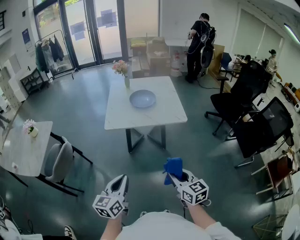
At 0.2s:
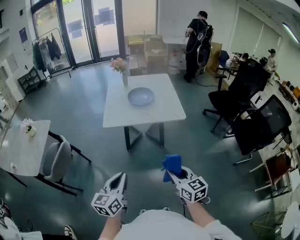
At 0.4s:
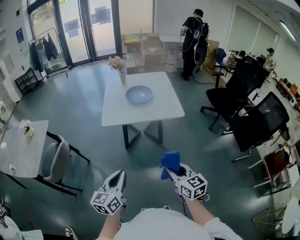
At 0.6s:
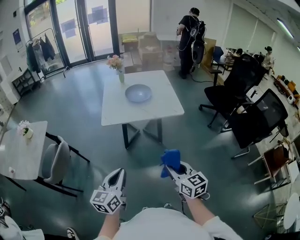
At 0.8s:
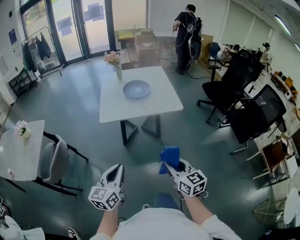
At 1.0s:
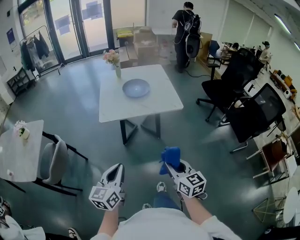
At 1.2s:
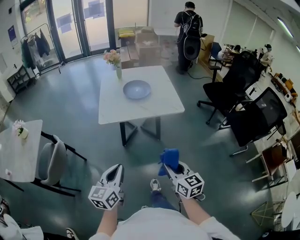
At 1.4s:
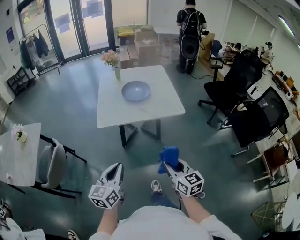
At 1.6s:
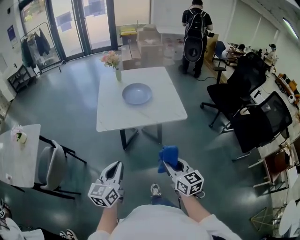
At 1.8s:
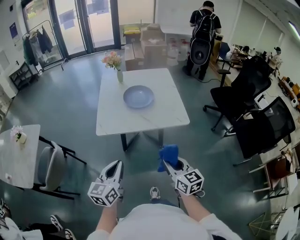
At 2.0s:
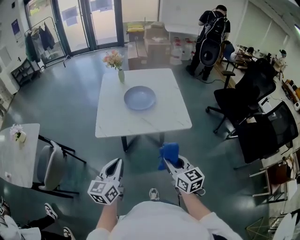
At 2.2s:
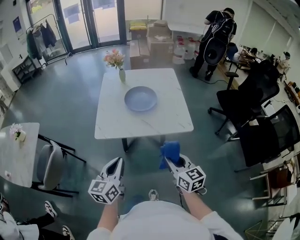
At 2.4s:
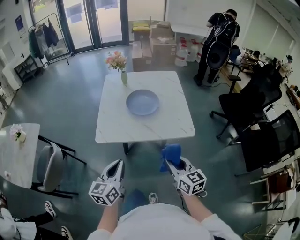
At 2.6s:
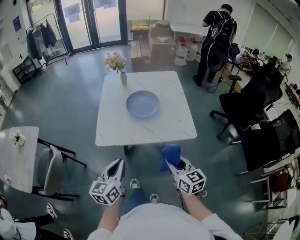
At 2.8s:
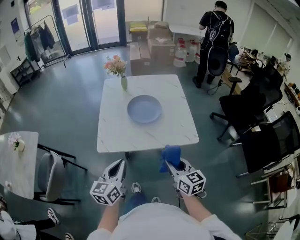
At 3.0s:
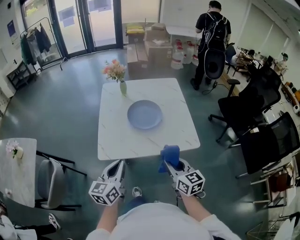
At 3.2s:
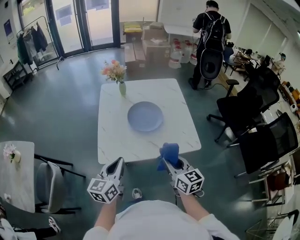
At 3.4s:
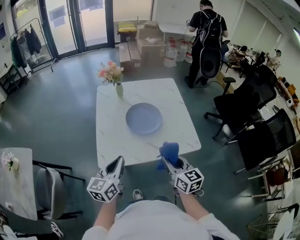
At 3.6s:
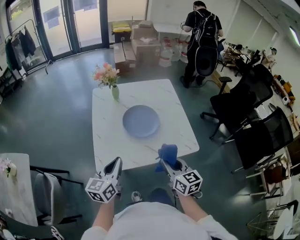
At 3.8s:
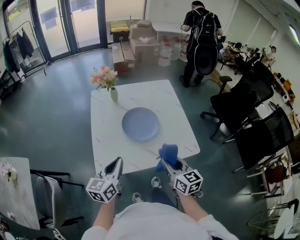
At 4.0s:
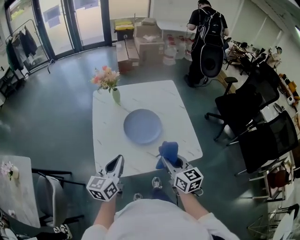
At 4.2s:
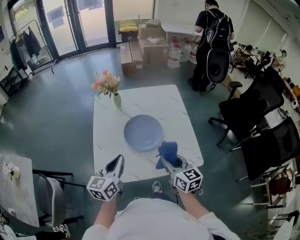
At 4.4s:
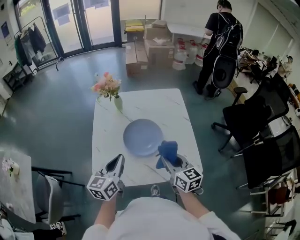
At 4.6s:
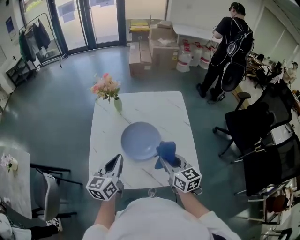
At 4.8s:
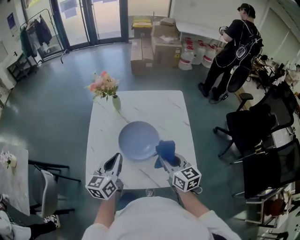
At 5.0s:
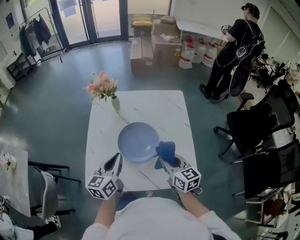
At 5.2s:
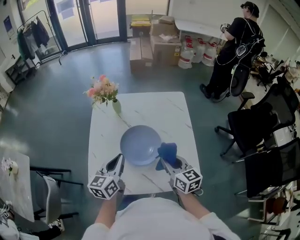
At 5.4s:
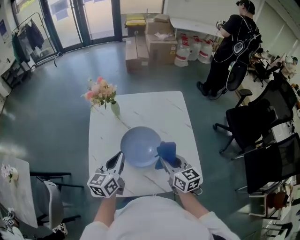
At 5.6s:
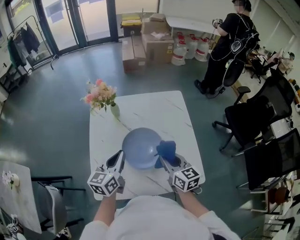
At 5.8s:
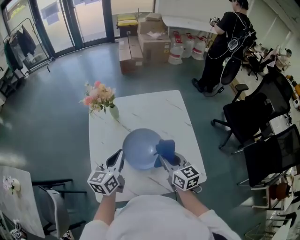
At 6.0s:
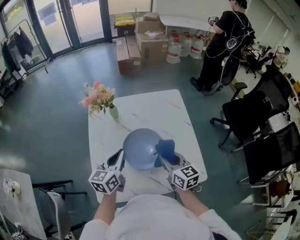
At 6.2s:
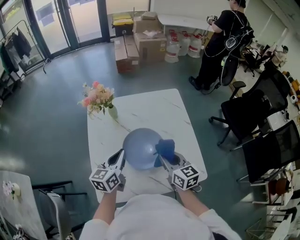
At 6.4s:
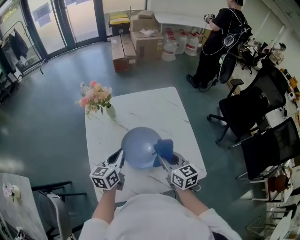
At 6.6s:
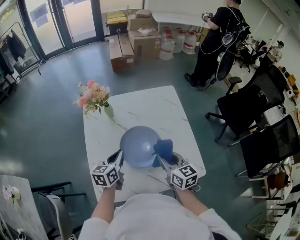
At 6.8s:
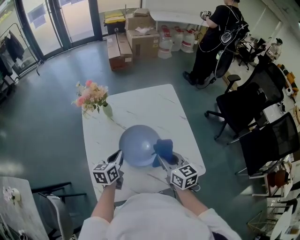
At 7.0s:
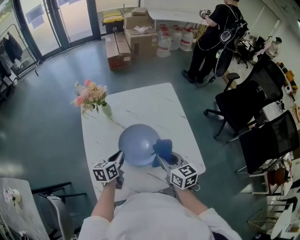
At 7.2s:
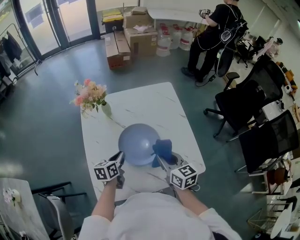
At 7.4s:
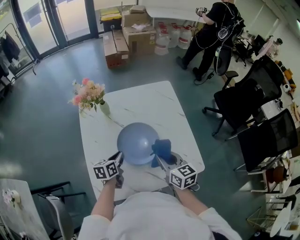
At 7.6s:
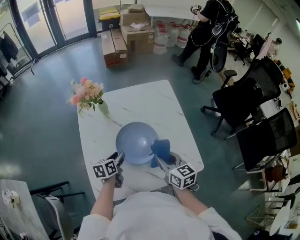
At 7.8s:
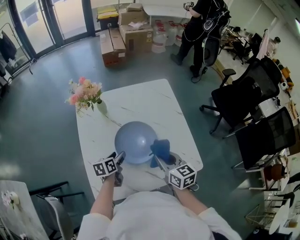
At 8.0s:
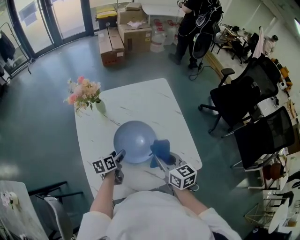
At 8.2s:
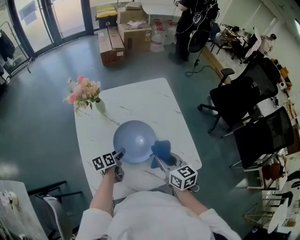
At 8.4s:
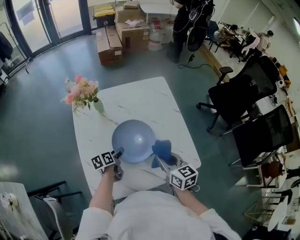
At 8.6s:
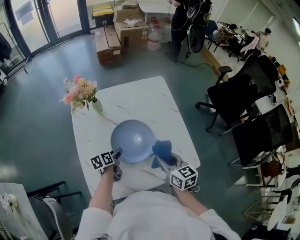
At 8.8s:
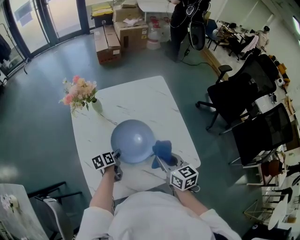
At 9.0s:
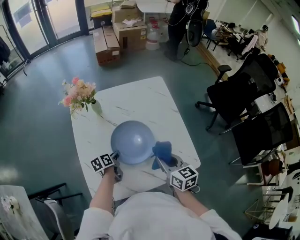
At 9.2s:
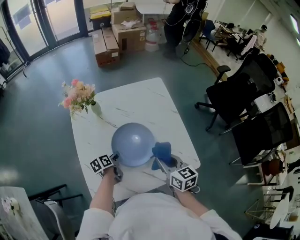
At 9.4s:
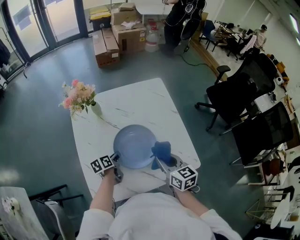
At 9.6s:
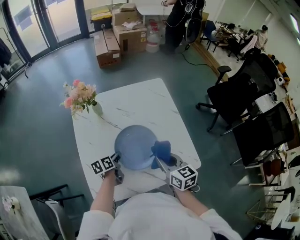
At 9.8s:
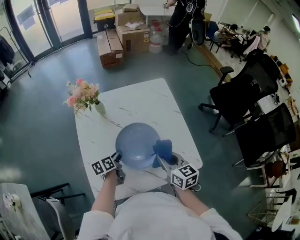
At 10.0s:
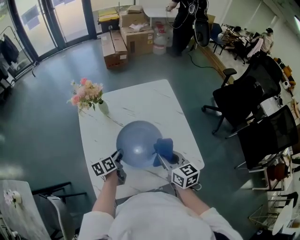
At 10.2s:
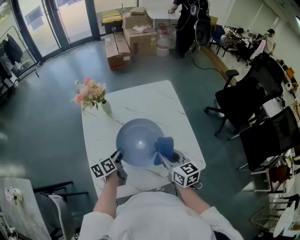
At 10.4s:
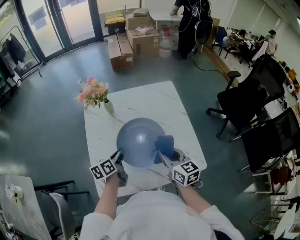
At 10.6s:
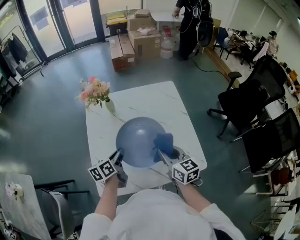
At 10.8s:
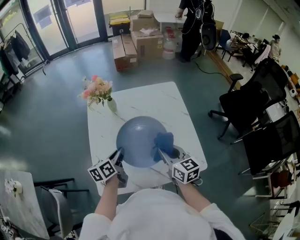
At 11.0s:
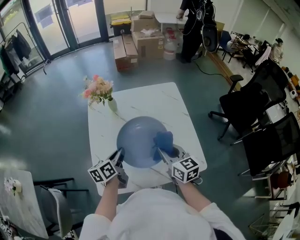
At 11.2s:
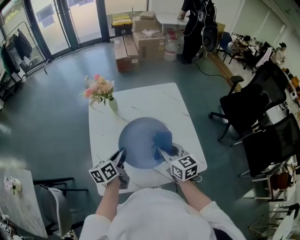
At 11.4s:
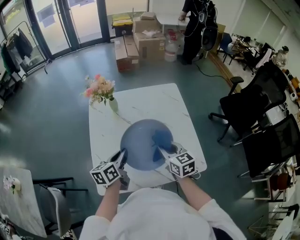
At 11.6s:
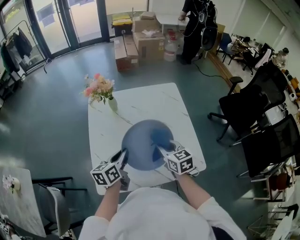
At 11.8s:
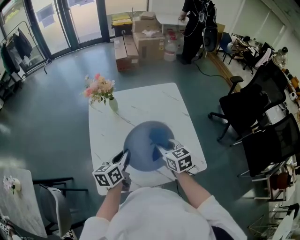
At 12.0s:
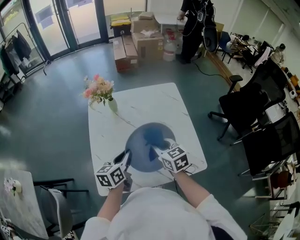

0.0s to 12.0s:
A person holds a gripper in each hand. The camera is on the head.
0.0s to 1.6s: Both grippers travel together forward, some 15 cm.
1.6s to 3.0s: Both grippers move forward, some 25 cm.
3.0s to 4.4s: Both grippers move forward, roughly 20 cm.
4.4s to 6.0s: The grippers both shift forward by some 10 cm.
6.0s to 7.6s: The left gripper heads downward, covering roughly 15 cm, turns by roughly 30 degrees, and opens up.
7.6s to 9.0s: The left gripper goes about 5 cm downward, and opens, then closes once more.
9.0s to 10.4s: The left gripper travels upward by approximately 15 cm.
10.4s to 12.0s: The left gripper heads upward, covering some 5 cm; the right gripper moves some 5 cm.

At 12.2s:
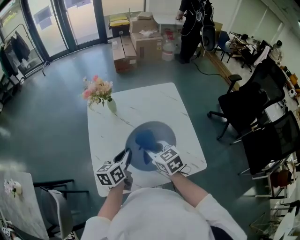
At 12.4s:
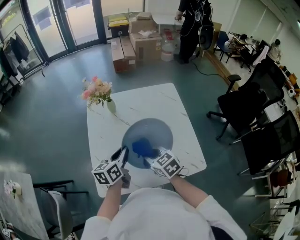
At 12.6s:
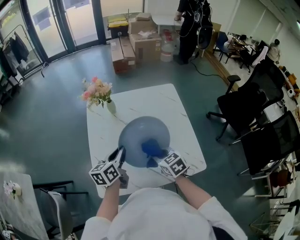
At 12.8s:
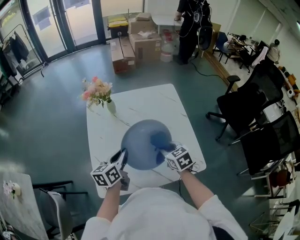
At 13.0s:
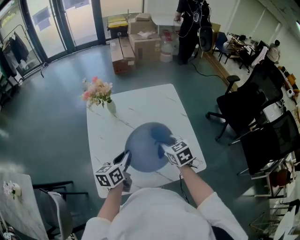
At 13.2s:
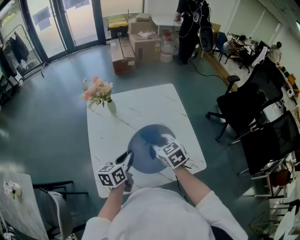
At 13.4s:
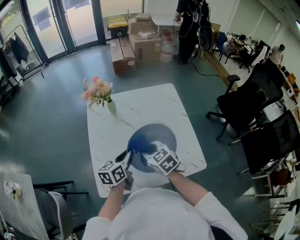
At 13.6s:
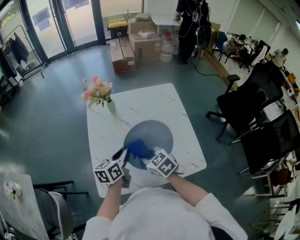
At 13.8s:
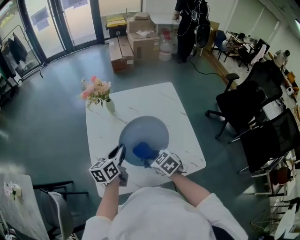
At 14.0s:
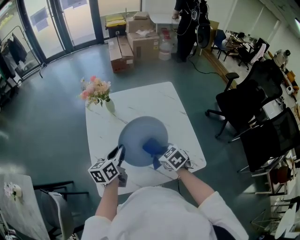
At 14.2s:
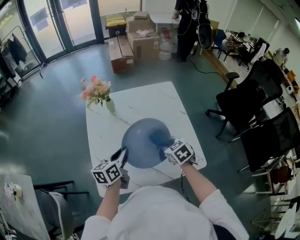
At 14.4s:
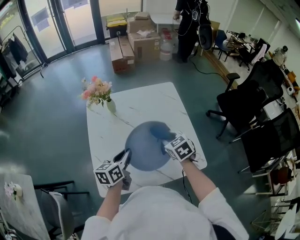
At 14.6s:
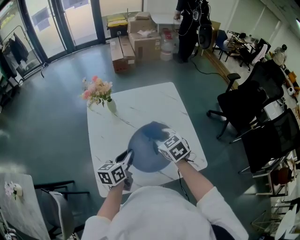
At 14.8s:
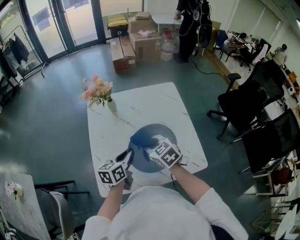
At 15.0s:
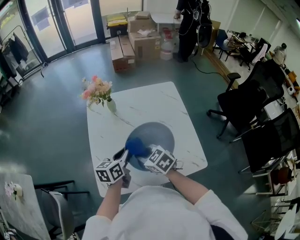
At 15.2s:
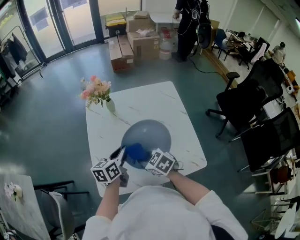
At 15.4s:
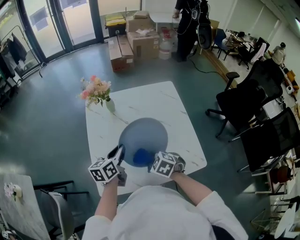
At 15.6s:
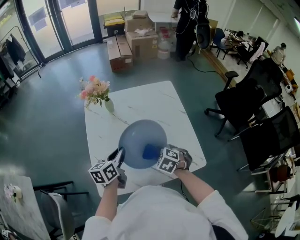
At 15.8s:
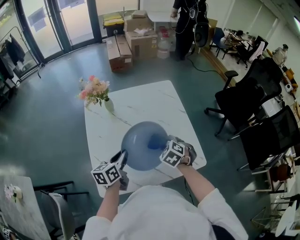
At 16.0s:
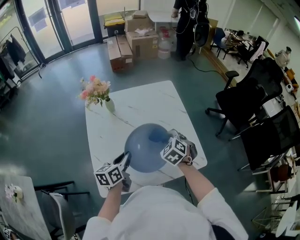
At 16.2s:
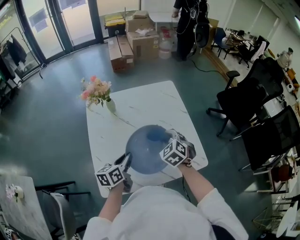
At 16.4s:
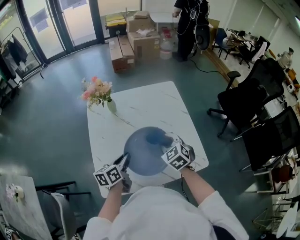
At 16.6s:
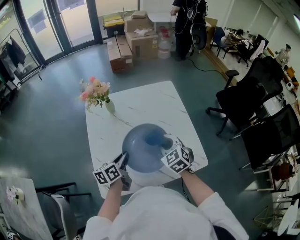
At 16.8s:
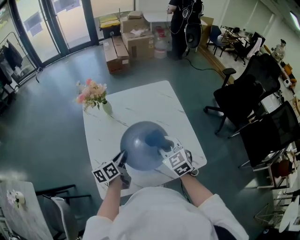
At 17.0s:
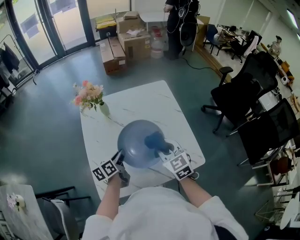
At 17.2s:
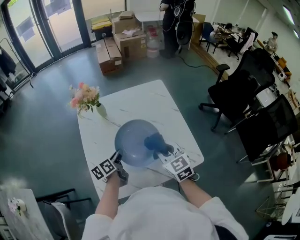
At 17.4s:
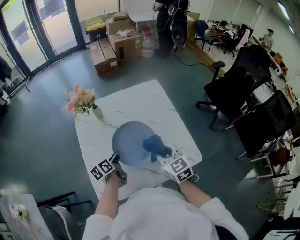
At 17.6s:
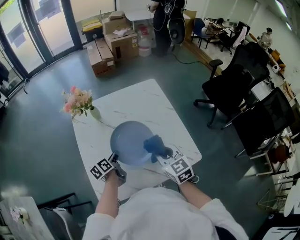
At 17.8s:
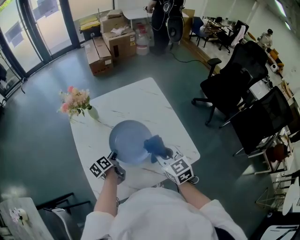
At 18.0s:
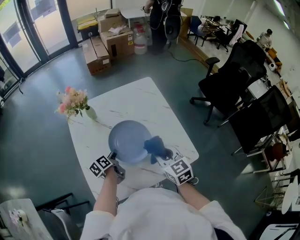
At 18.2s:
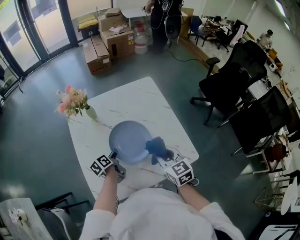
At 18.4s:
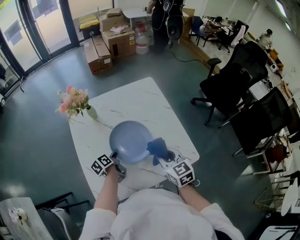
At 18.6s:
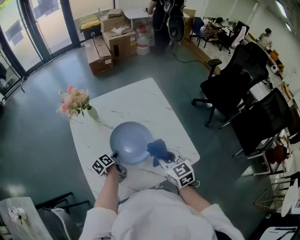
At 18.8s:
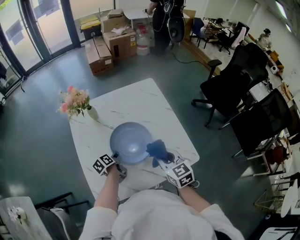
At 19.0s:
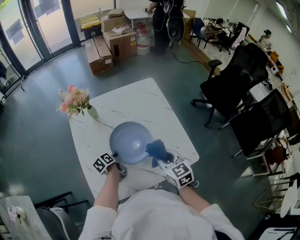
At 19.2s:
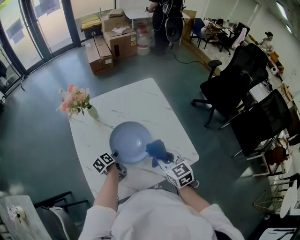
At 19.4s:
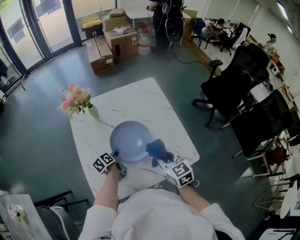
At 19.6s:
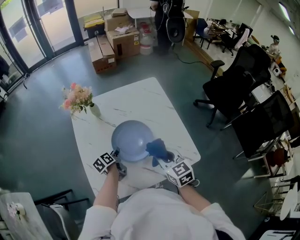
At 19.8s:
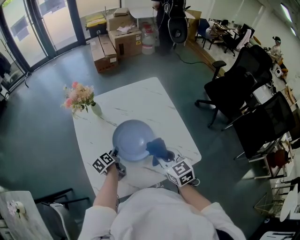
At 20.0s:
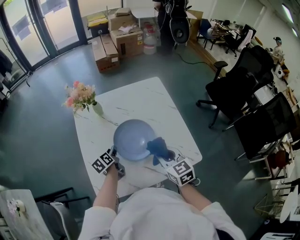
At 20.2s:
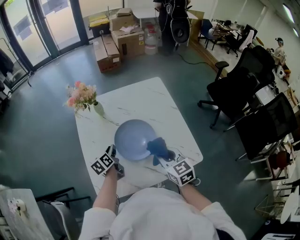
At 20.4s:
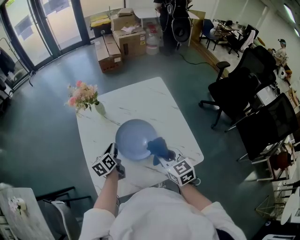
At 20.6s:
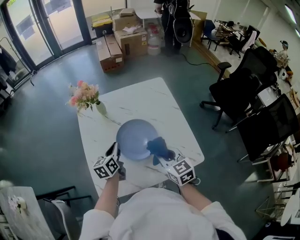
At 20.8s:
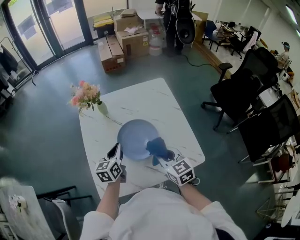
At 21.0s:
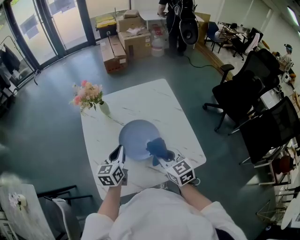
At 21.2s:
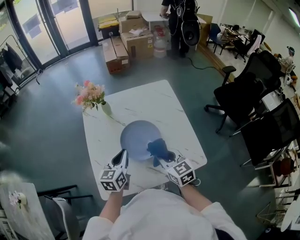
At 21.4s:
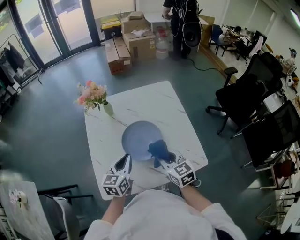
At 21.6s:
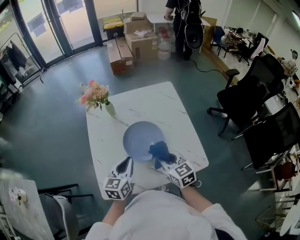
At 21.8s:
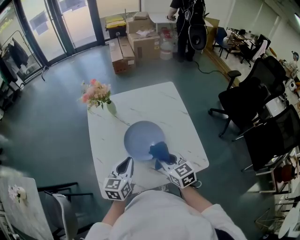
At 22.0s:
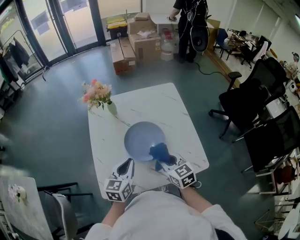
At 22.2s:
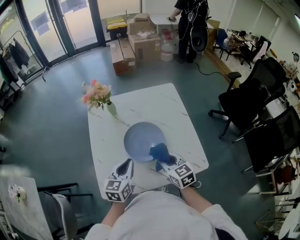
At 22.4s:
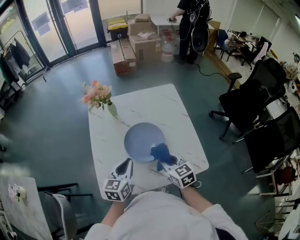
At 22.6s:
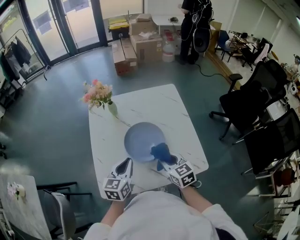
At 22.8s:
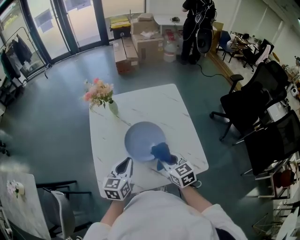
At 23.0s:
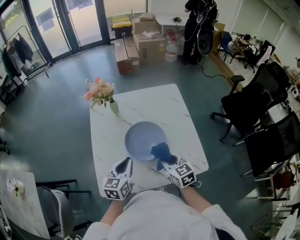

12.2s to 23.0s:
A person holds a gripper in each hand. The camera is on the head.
12.2s to 13.8s: The right gripper moves downward, some 5 cm, and moves approximately 10 cm to the right and comes back.
13.8s to 15.2s: The right gripper goes to the right and returns, approximately 10 cm each way.
15.2s to 16.8s: The right gripper shifts by roughly 15 cm, and turns by about 40 degrees.
16.8s to 18.4s: The left gripper moves downward and forward, some 10 cm, and swivels approximately 20 degrees. The right gripper changes place by roughly 5 cm.
18.4s to 20.0s: The left gripper opens up.
20.0s to 21.4s: The left gripper shifts about 20 cm upward, backward and to the right, turns by roughly 40 degrees, and closes its fingers.
21.4s to 23.0s: There are only small adjustments of the grippers.

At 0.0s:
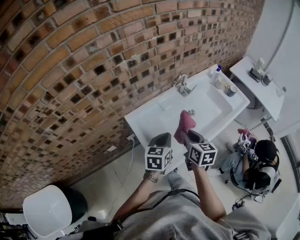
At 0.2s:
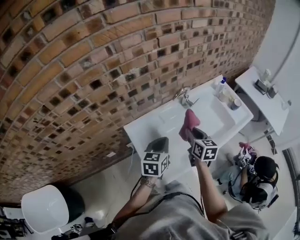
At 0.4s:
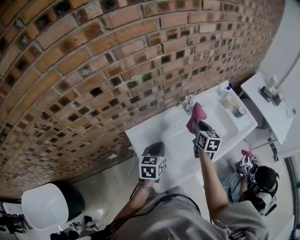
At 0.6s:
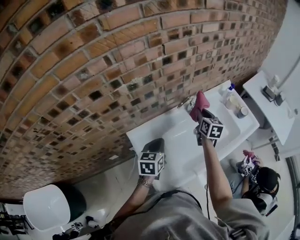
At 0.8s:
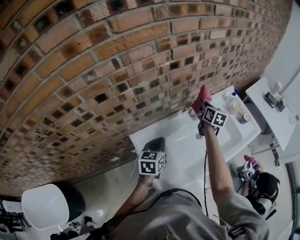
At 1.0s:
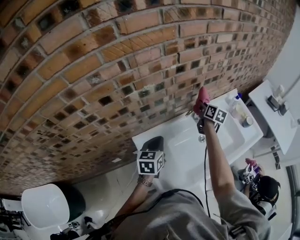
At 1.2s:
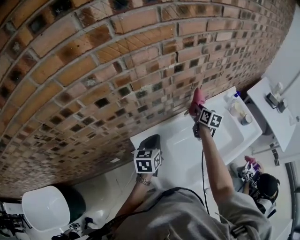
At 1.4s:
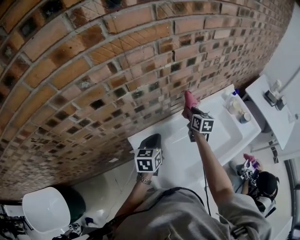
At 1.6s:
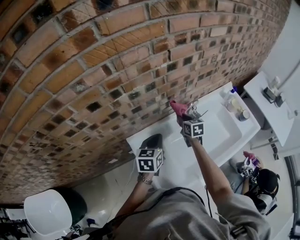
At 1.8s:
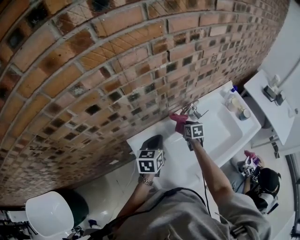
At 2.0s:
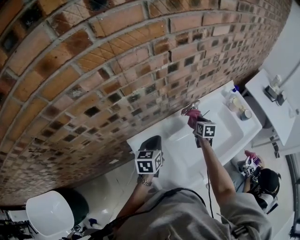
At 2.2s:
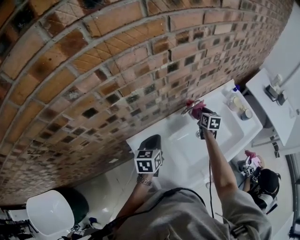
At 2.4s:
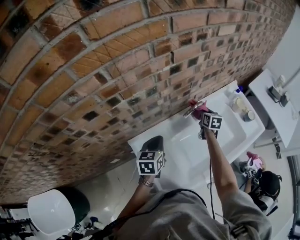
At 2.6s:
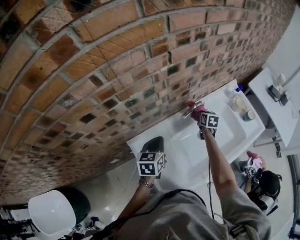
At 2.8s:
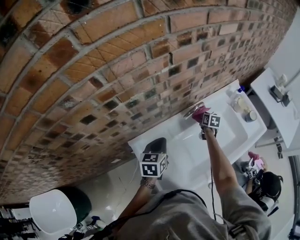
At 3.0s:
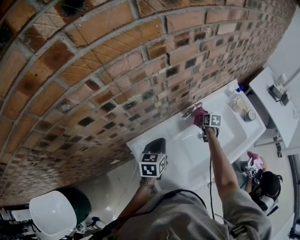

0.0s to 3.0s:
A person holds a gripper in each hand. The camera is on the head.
0.0s to 1.6s: The right gripper shifts about 30 cm forward. The left gripper travels forward by about 20 cm.
1.6s to 3.0s: The right gripper travels to the right and downward by about 20 cm, and rotates some 30 degrees.
